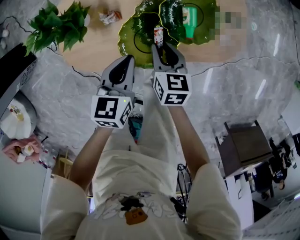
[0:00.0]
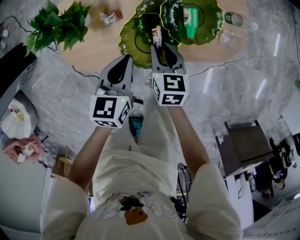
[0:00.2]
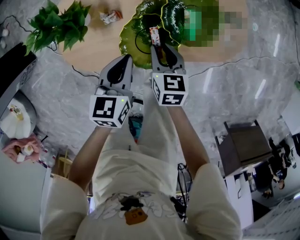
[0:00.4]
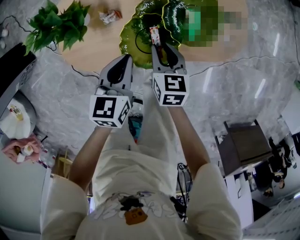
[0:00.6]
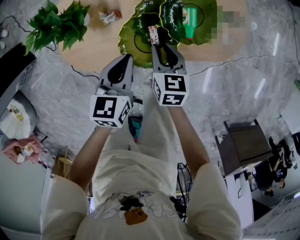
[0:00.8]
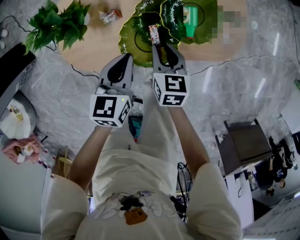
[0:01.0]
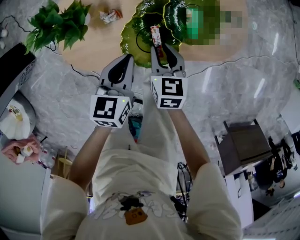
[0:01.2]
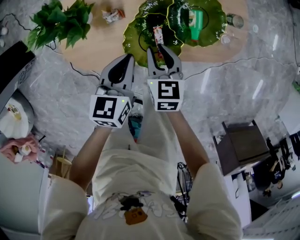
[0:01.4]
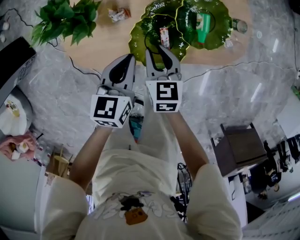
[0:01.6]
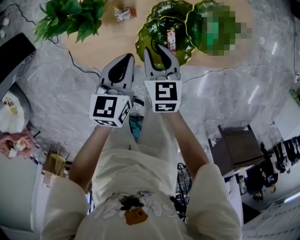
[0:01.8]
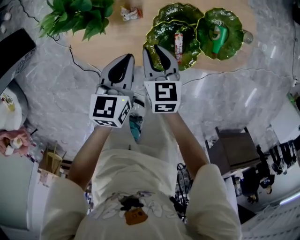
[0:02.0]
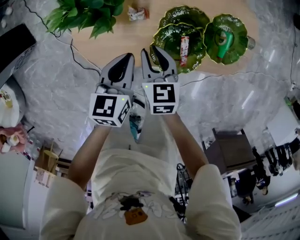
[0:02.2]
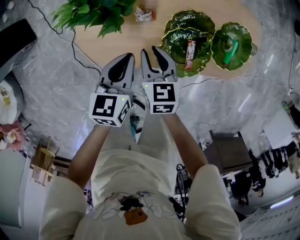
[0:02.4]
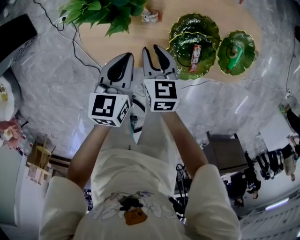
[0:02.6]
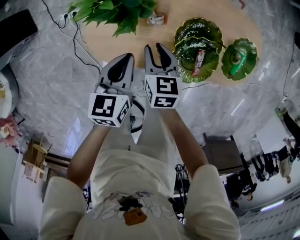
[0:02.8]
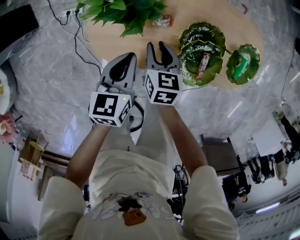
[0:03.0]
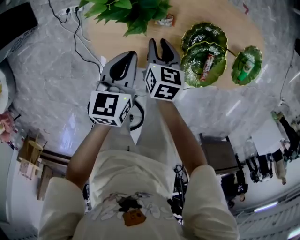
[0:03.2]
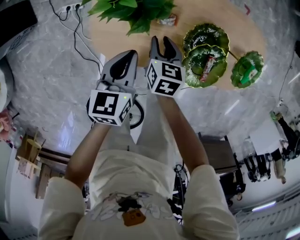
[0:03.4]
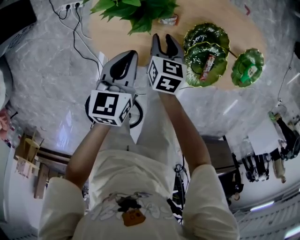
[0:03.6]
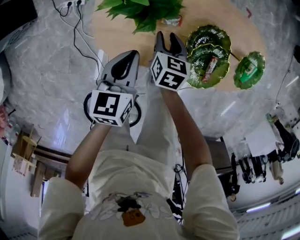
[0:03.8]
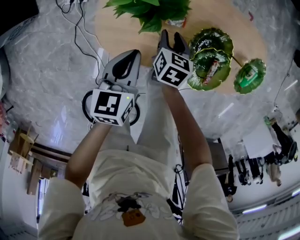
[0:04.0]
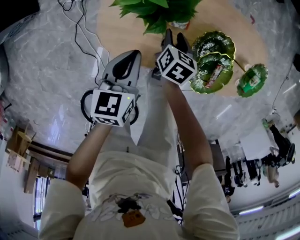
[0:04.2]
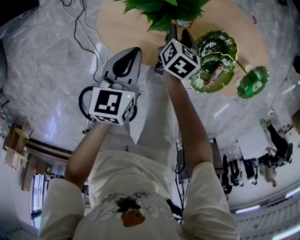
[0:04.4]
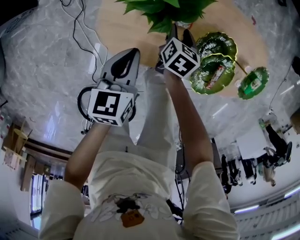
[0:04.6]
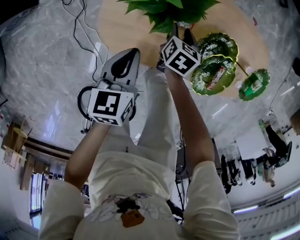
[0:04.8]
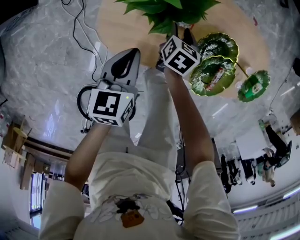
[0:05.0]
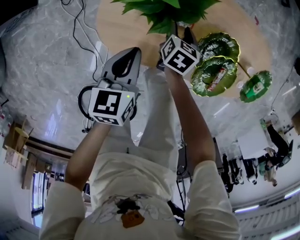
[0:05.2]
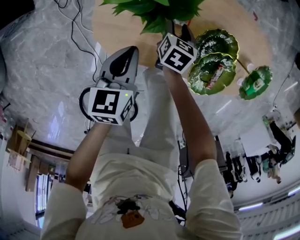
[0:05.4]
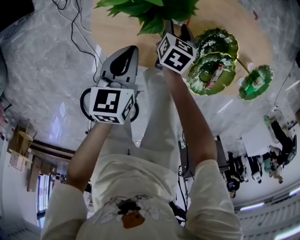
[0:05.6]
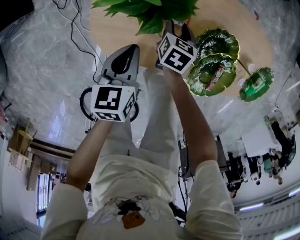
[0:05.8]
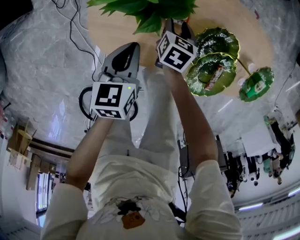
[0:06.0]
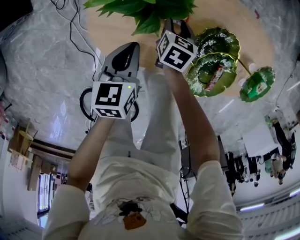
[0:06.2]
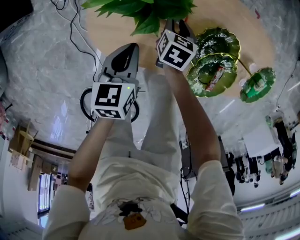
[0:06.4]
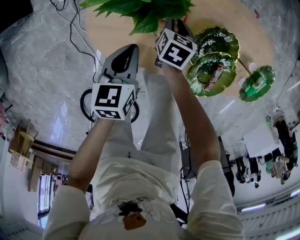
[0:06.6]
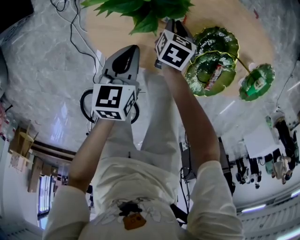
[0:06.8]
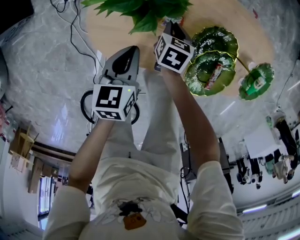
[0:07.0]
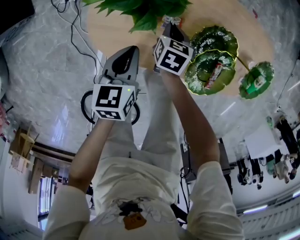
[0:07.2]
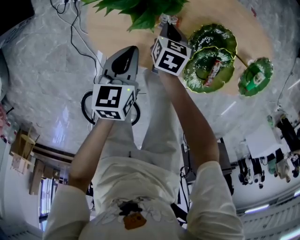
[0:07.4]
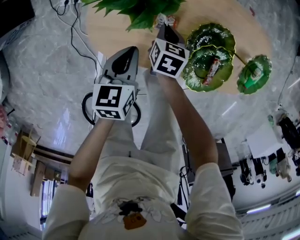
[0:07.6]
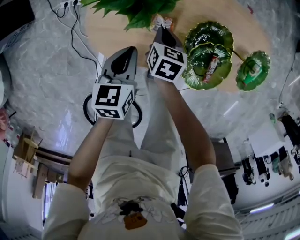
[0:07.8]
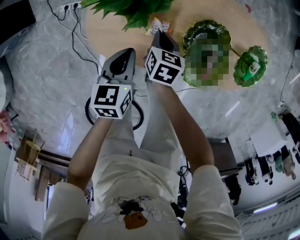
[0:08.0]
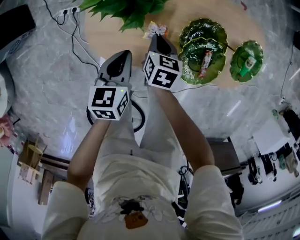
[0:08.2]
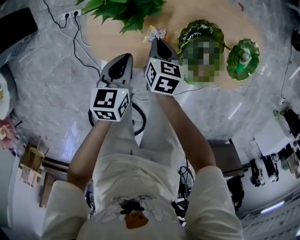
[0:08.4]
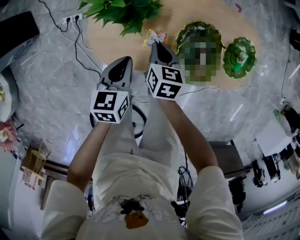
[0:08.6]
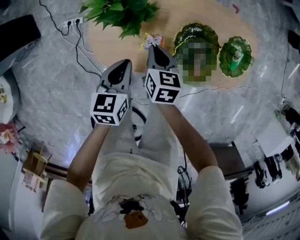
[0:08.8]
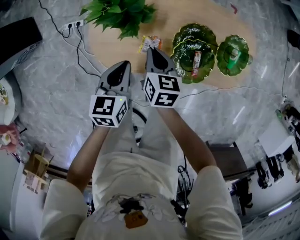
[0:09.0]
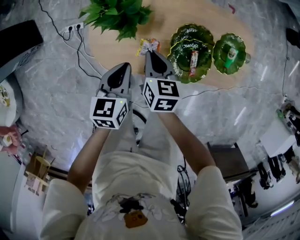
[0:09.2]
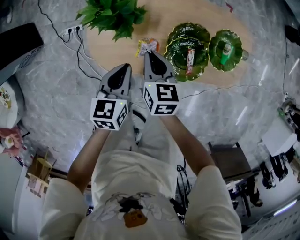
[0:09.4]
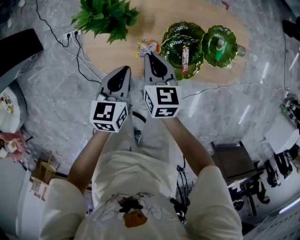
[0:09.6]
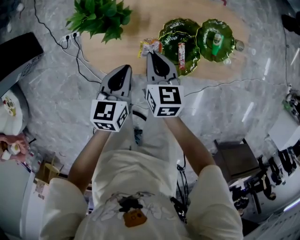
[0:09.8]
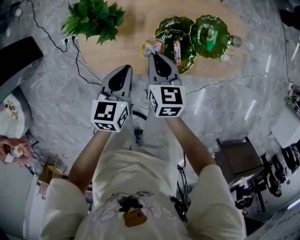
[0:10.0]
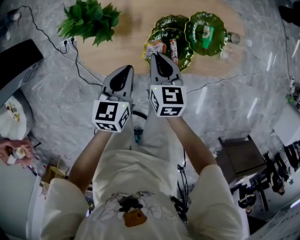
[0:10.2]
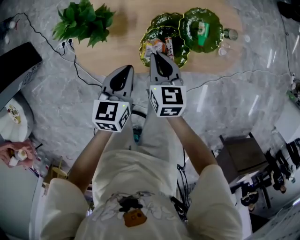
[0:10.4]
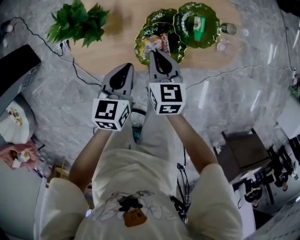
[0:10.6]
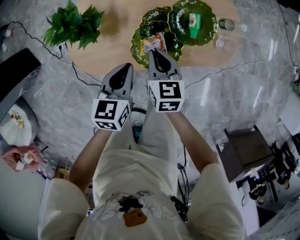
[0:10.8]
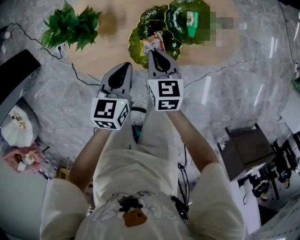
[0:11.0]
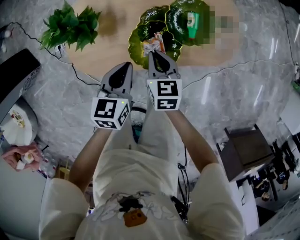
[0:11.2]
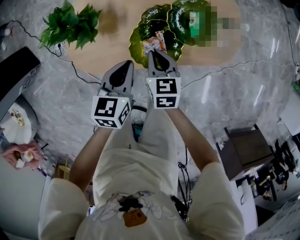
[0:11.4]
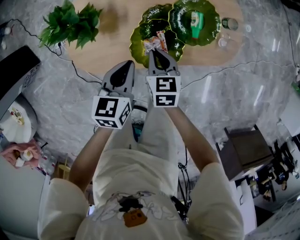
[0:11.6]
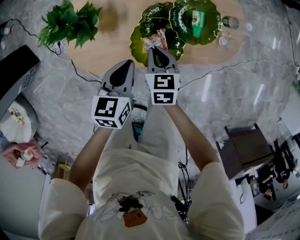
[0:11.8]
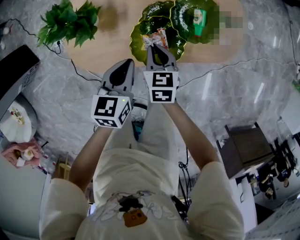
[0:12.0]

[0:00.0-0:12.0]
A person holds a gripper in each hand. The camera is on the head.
0:00.0 to 0:01.6: The right gripper is displaced to the left by approximately 5 cm.
0:01.6 to 0:03.0: The grippers both shift to the left by some 15 cm.
0:03.0 to 0:04.4: The right gripper shifts about 10 cm downward. The left gripper is displaced to the left by about 5 cm.
0:04.4 to 0:06.0: Both grippers travel together downward, about 5 cm.
0:06.0 to 0:07.6: The right gripper closes up.
0:07.6 to 0:09.0: The right gripper goes roughly 15 cm upward. Meanwhile the left gripper goes roughly 10 cm upward.
0:09.0 to 0:10.4: The right gripper shifts some 15 cm to the right and upward; the left gripper travels to the right by roughly 15 cm.
0:10.4 to 0:12.0: The right gripper shifts about 10 cm downward.

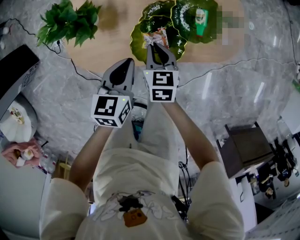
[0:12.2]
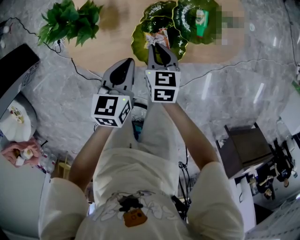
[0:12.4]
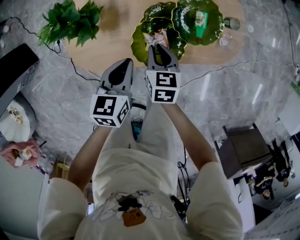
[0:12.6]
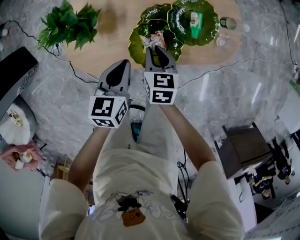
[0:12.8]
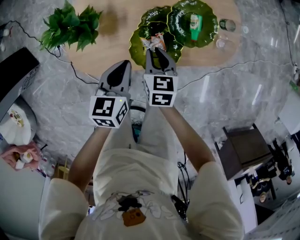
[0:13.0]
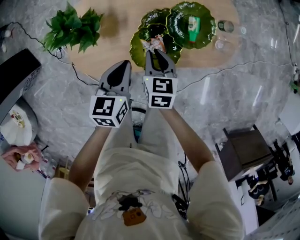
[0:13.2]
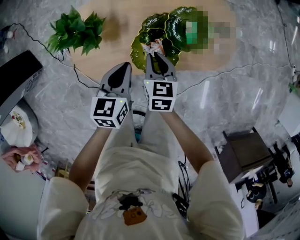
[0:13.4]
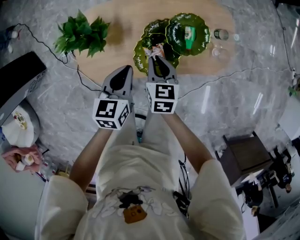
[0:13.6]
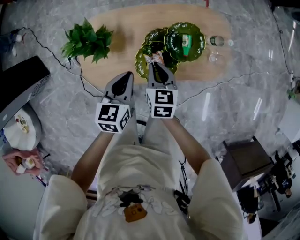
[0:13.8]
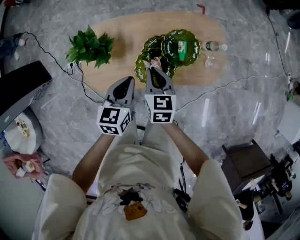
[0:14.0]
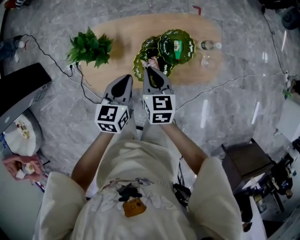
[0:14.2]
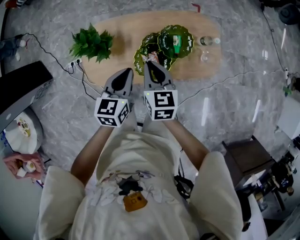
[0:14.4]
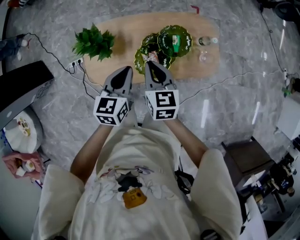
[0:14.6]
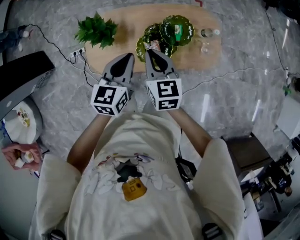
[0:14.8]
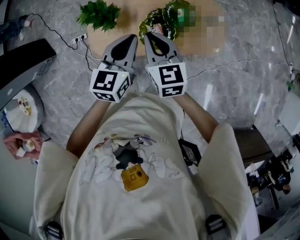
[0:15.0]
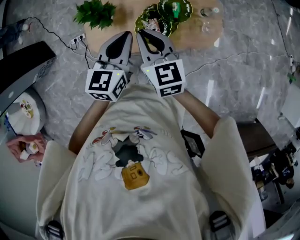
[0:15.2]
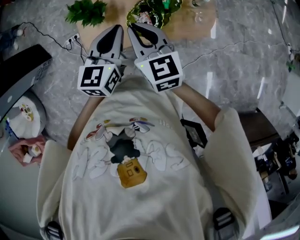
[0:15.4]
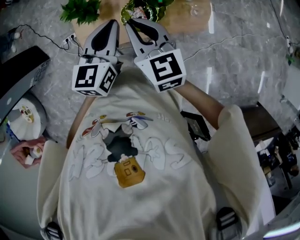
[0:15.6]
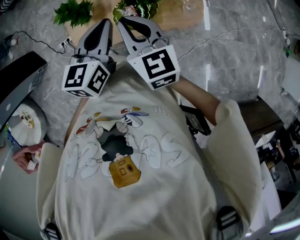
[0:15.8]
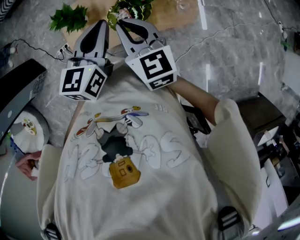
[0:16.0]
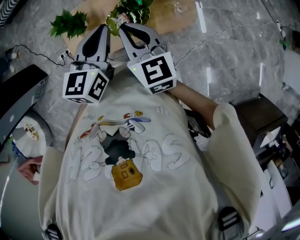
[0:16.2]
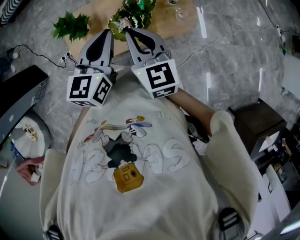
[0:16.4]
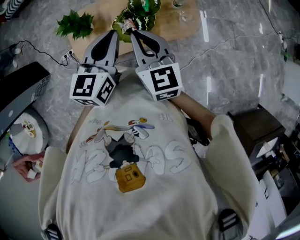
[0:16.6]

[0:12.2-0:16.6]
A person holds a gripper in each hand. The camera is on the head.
0:12.2 to 0:13.6: The two grippers go roughly 5 cm upward.
0:13.6 to 0:15.2: Both grippers travel together upward, about 25 cm. The right gripper rotates approximately 30 degrees.
0:15.2 to 0:16.6: The left gripper is displaced to the right and upward by about 10 cm, while the right gripper moves to the right, backward and upward, some 15 cm.

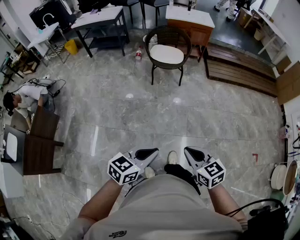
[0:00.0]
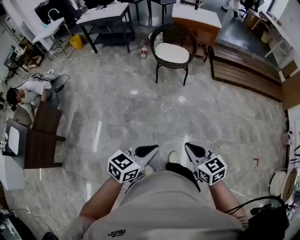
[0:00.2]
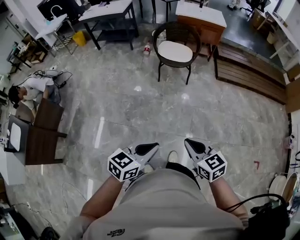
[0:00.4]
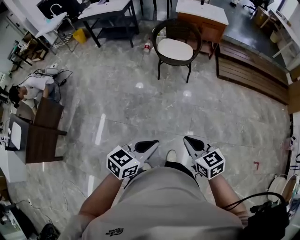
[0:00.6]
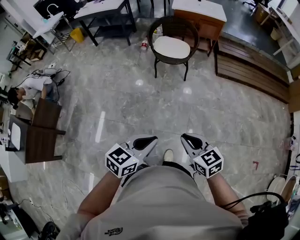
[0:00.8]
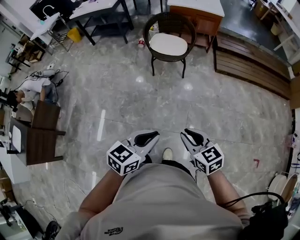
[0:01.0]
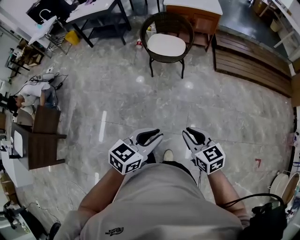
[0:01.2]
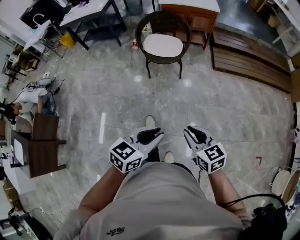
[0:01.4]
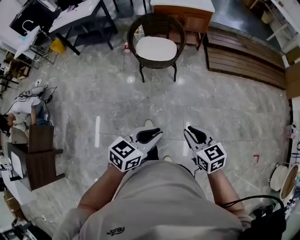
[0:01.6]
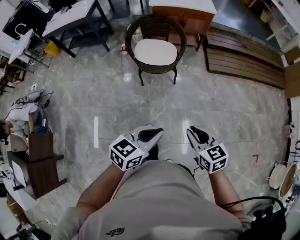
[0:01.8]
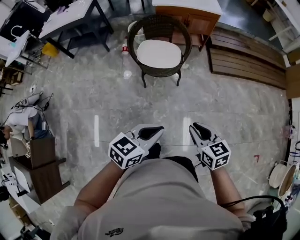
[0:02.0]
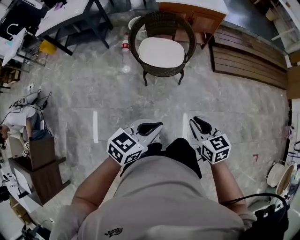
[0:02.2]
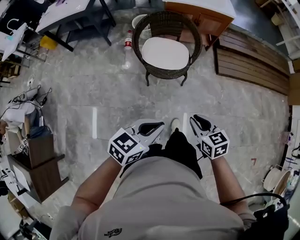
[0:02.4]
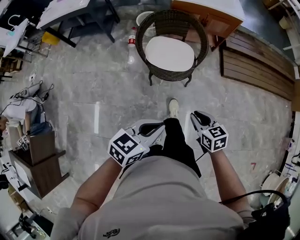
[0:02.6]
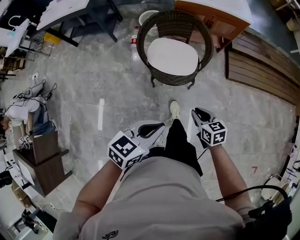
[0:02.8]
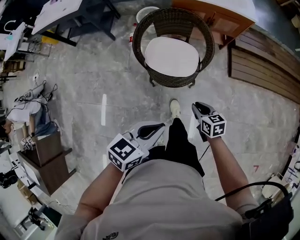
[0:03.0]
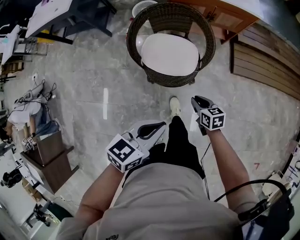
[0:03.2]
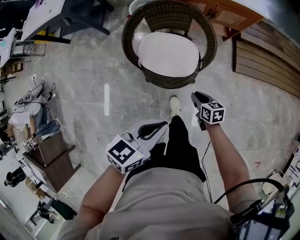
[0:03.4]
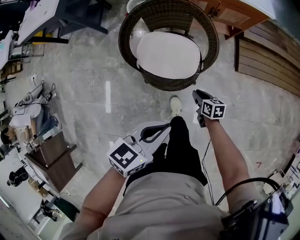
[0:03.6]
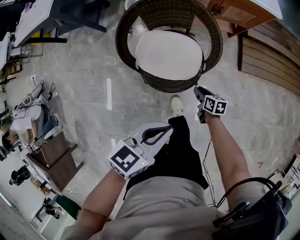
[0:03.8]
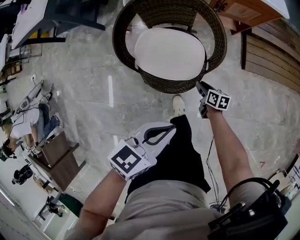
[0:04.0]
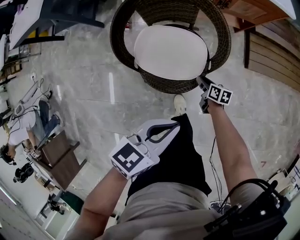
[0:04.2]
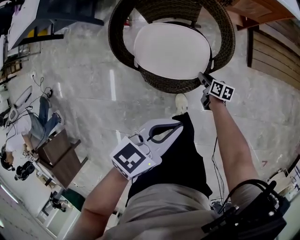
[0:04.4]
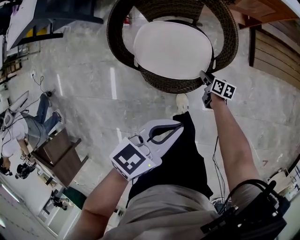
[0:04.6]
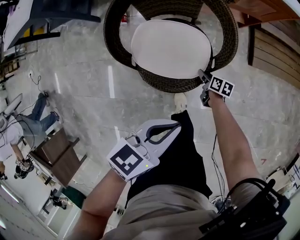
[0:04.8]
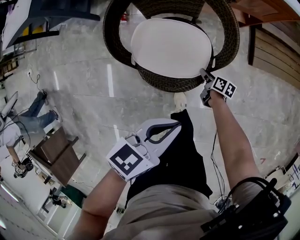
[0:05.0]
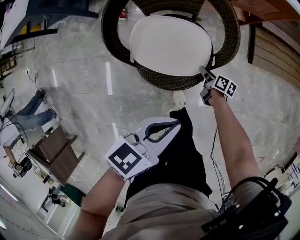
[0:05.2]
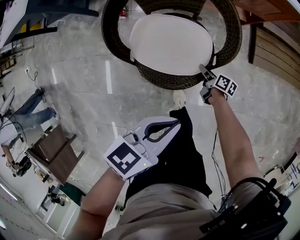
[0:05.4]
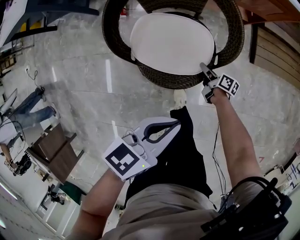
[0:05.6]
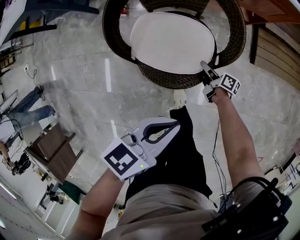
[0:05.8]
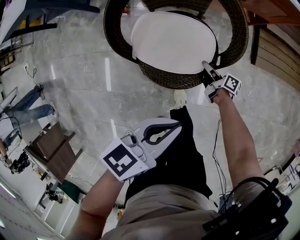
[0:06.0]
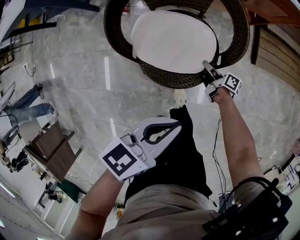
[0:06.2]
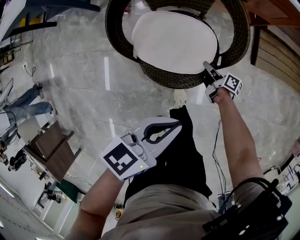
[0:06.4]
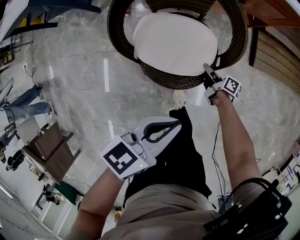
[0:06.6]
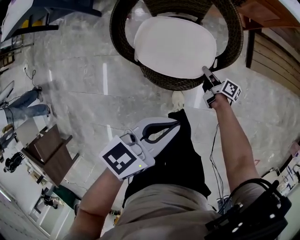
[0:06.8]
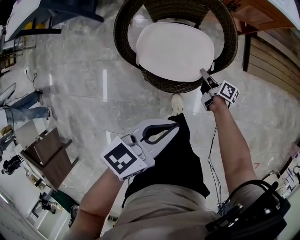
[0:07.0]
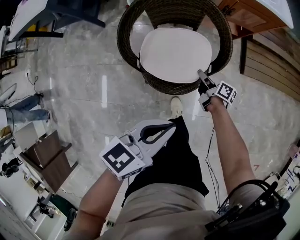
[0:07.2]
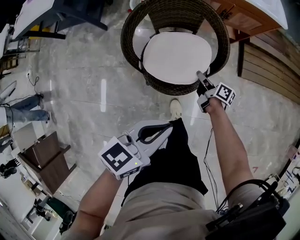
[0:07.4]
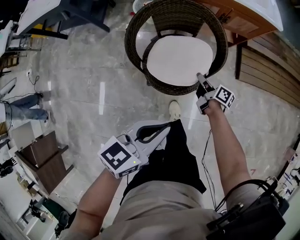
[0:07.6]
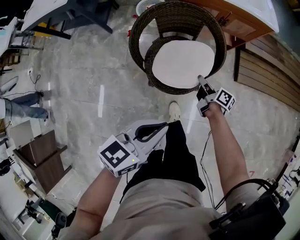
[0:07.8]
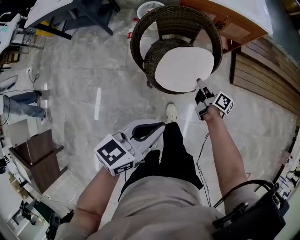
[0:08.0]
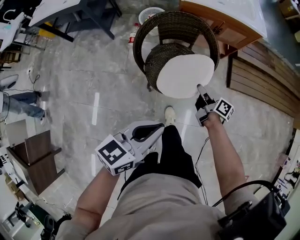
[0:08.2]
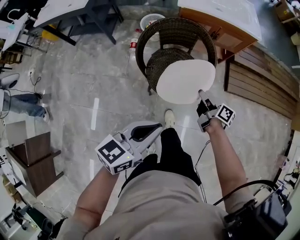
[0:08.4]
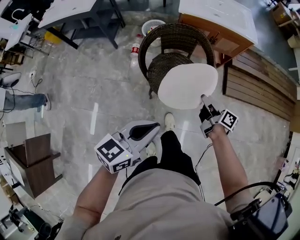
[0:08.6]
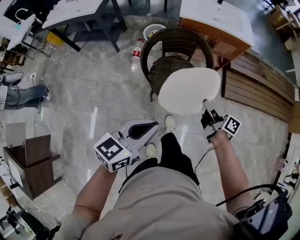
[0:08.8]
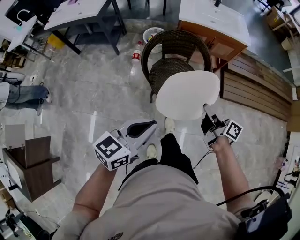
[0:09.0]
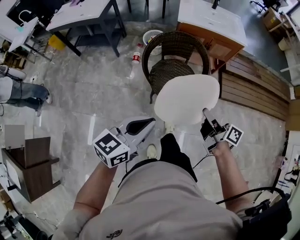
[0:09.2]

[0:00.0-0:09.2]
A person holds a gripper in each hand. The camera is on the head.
0:00.0 to 0:01.6: The grippers both shift forward by roughly 30 cm.
0:01.6 to 0:03.0: The two grippers travel together, forward, roughly 40 cm. The right gripper heads downward, covering roughly 20 cm.
0:03.0 to 0:04.6: The left gripper shifts some 25 cm forward and downward, while the right gripper moves downward and forward, approximately 40 cm, swivels about 40 degrees, and opens up.
0:04.6 to 0:06.2: The right gripper changes its angle by about 30 degrees, and closes.
0:06.2 to 0:07.6: The right gripper shifts roughly 20 cm upward; the left gripper goes about 15 cm upward and backward.
0:07.6 to 0:09.2: The right gripper travels upward and backward by some 40 cm. The left gripper is displaced backward, upward and to the left by some 25 cm.
